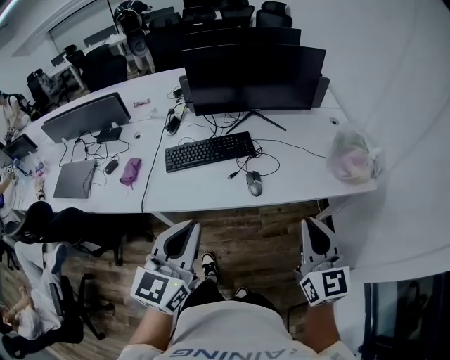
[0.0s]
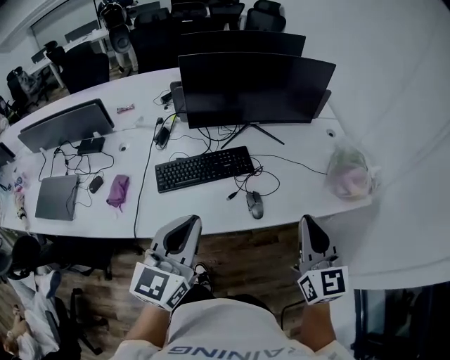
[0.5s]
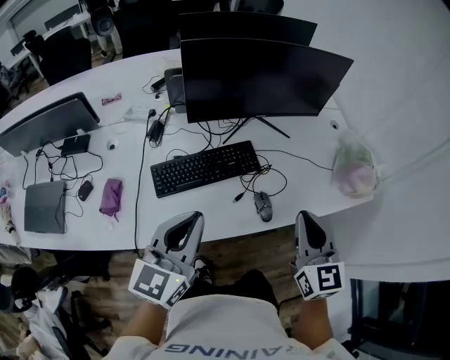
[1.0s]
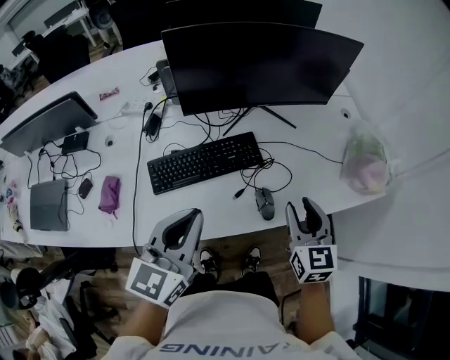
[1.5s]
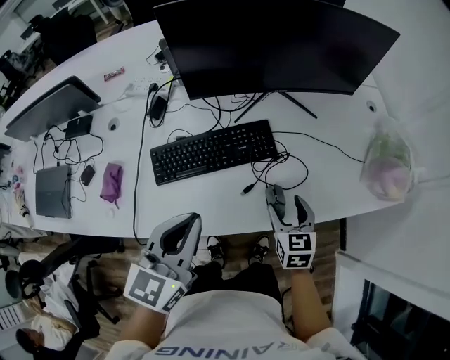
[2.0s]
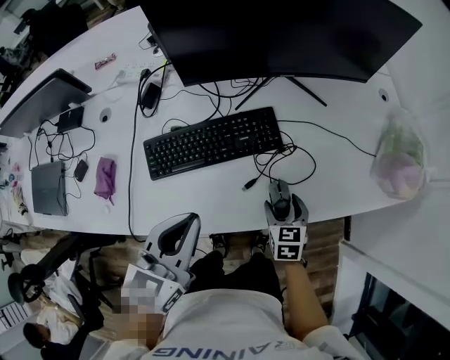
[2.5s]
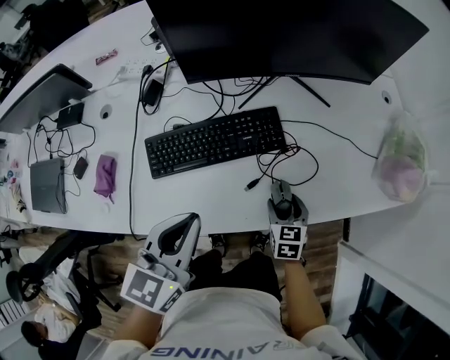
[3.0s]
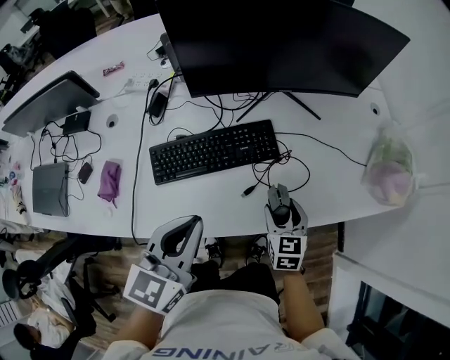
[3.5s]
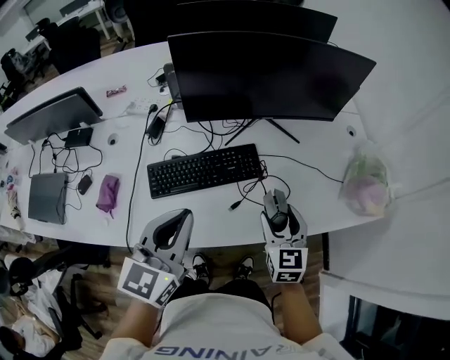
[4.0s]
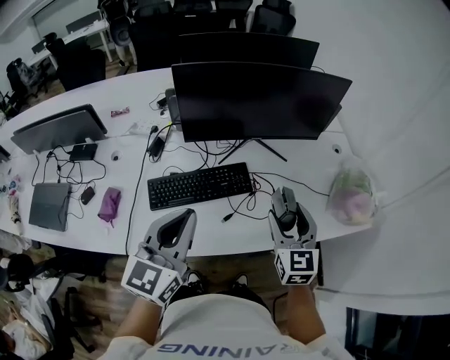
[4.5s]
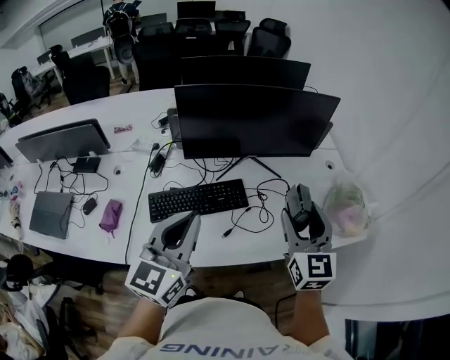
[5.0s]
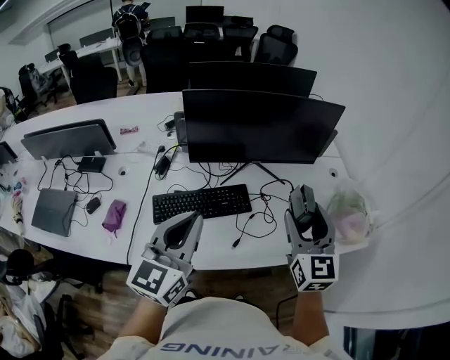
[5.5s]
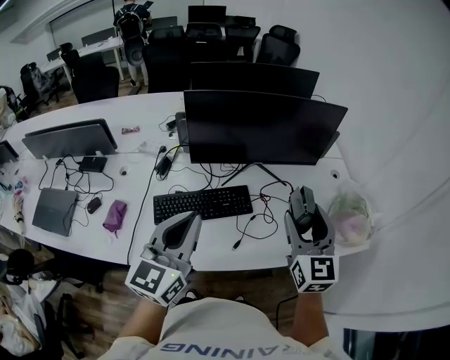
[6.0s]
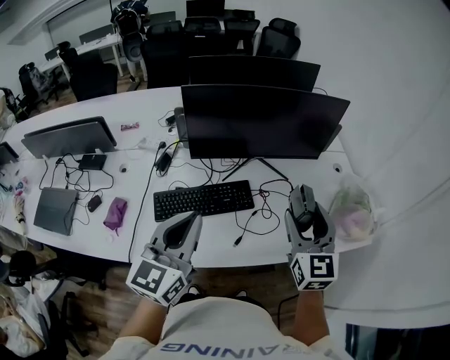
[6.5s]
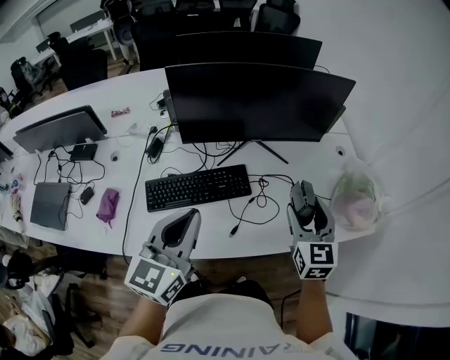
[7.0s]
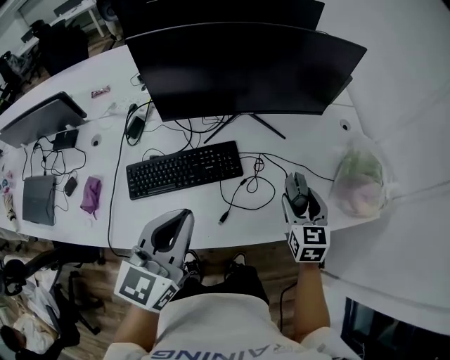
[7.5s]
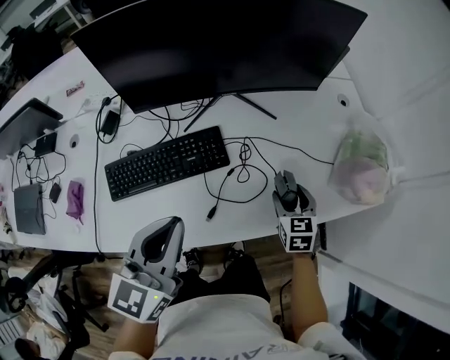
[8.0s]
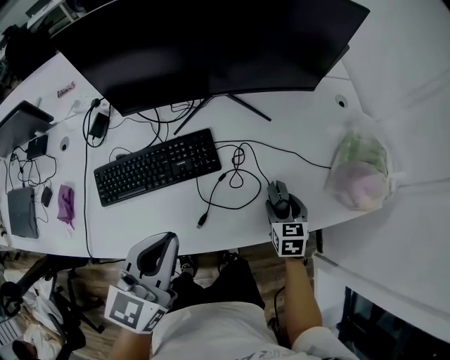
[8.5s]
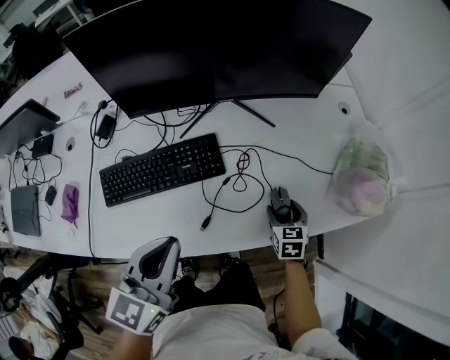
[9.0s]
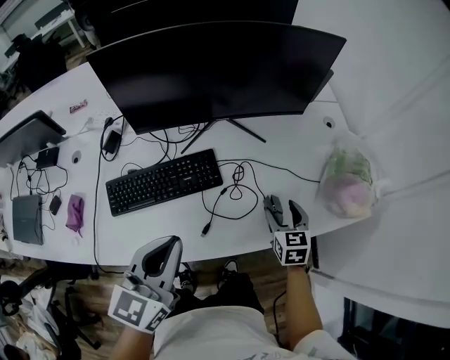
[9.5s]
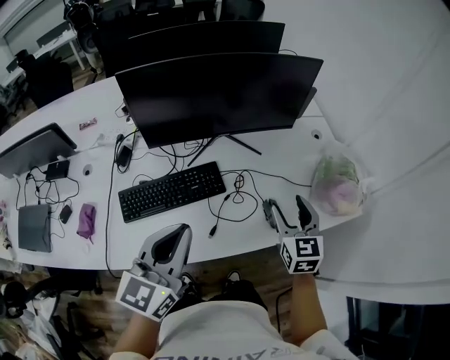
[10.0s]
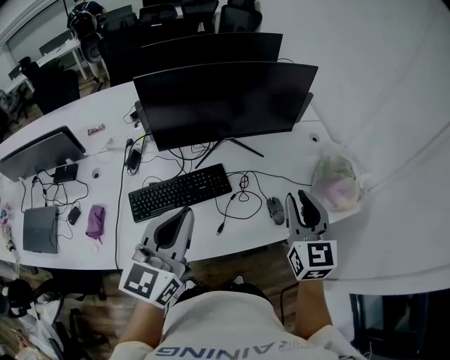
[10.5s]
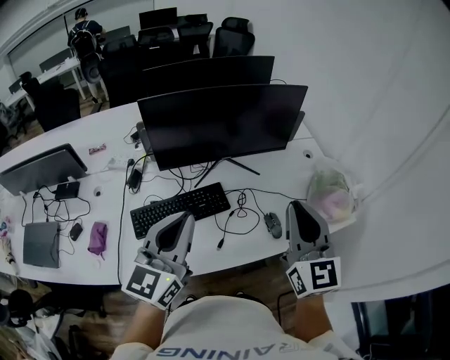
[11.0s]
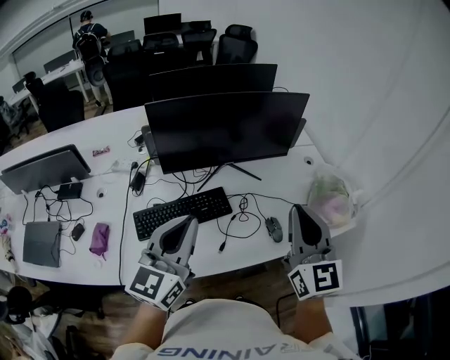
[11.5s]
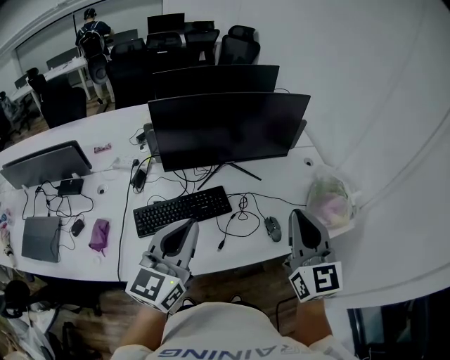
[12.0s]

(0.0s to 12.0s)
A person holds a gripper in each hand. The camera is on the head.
0.0s - 2.0s: The left gripper shifts roughly 25 cm forward and downward. The right gripper is displaced downward, forward and to the left by about 35 cm, tilts its fingers about 30 degrees downward, and opens.
2.0s - 4.0s: The right gripper travels upward by roughly 10 cm.
4.0s - 6.0s: The left gripper moves upward, approximately 10 cm. The right gripper goes roughly 20 cm upward, and turns by approximately 20 degrees.
6.0s - 8.0s: The right gripper is displaced downward by approximately 30 cm, and angles its fingers downward, by roughly 40 degrees; the left gripper travels downward, to the right and forward by some 15 cm.
8.0s - 10.0s: The left gripper shifts about 5 cm upward, while the right gripper goes roughly 20 cm upward, and rotates roughly 20 degrees.
10.0s - 12.0s: The right gripper is displaced upward and backward by some 20 cm, changes its angle by about 20 degrees, and closes. Meanwhile the left gripper is displaced upward by some 5 cm.

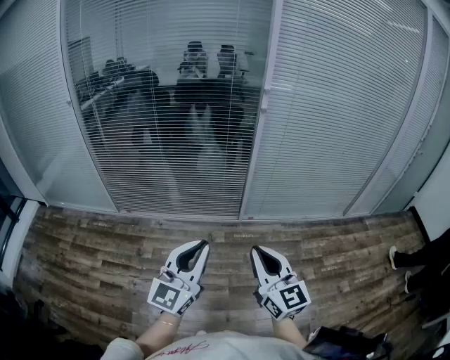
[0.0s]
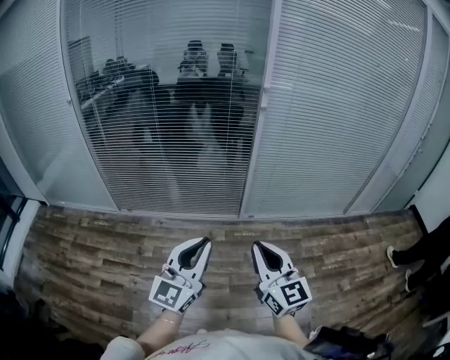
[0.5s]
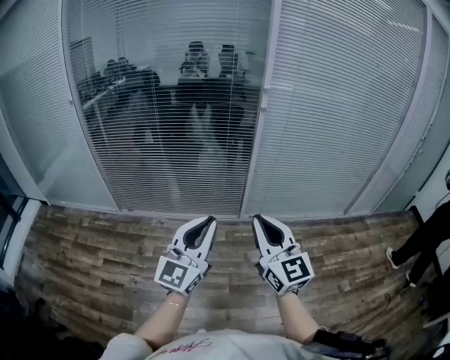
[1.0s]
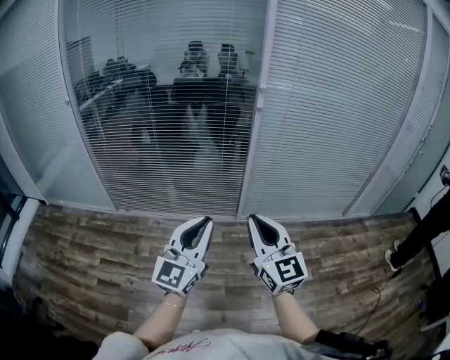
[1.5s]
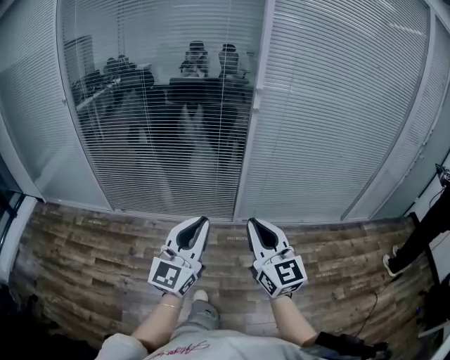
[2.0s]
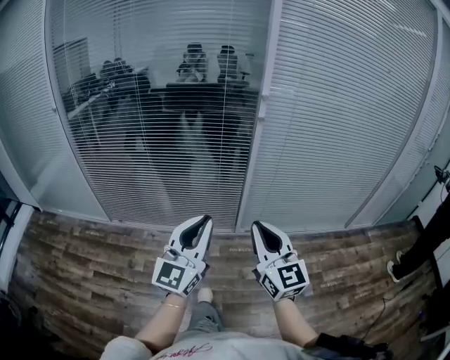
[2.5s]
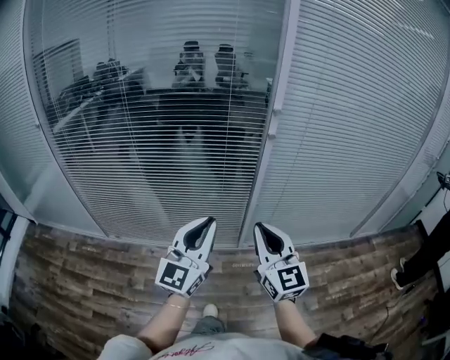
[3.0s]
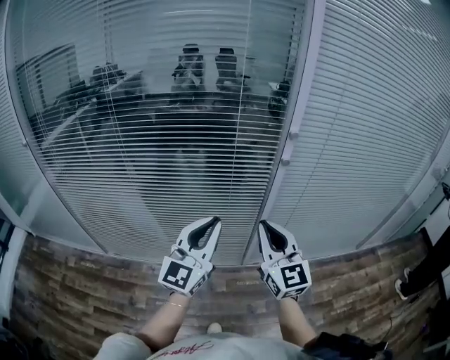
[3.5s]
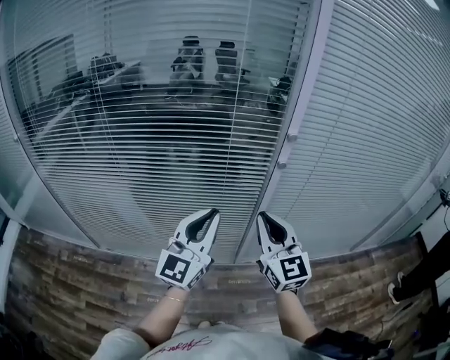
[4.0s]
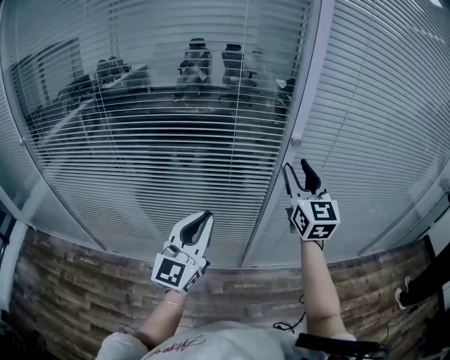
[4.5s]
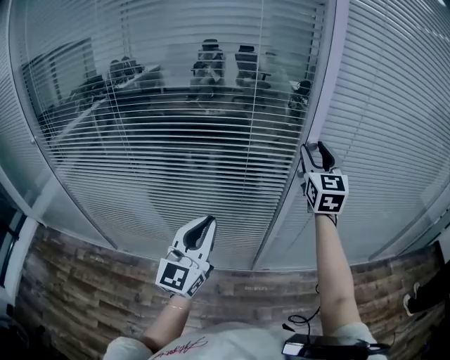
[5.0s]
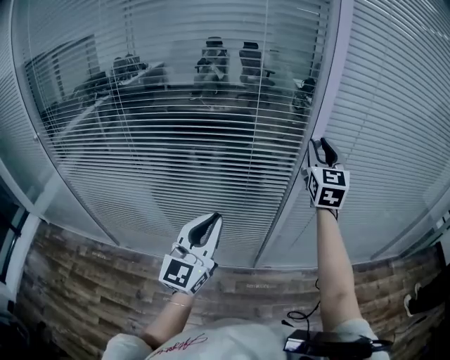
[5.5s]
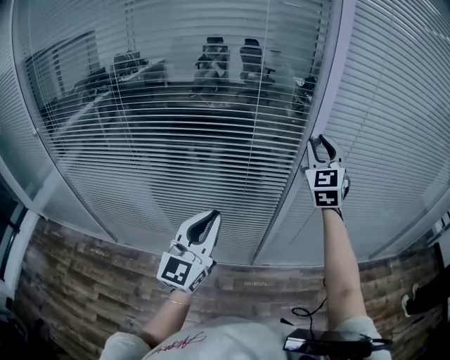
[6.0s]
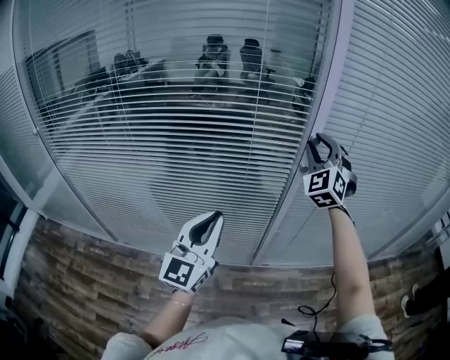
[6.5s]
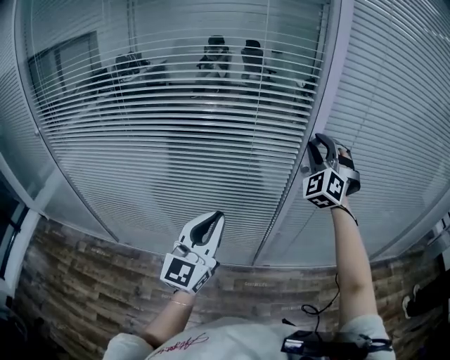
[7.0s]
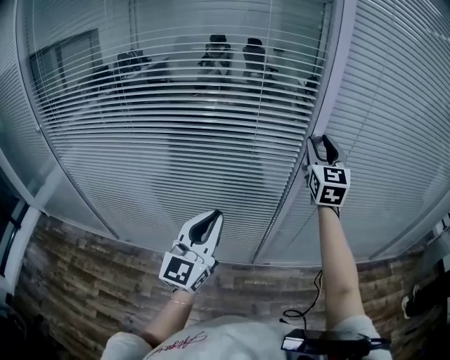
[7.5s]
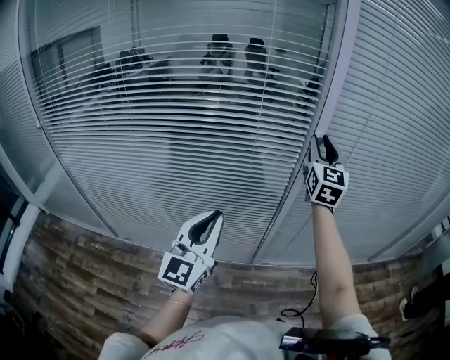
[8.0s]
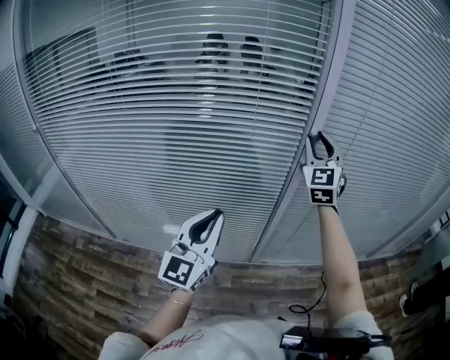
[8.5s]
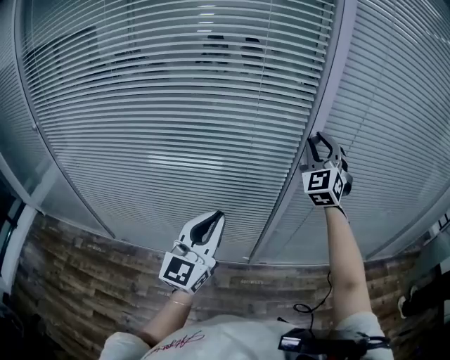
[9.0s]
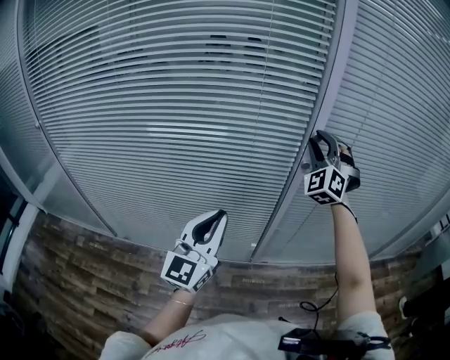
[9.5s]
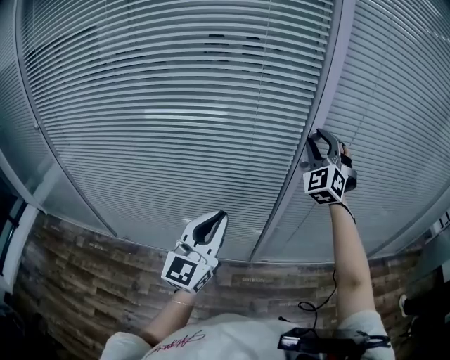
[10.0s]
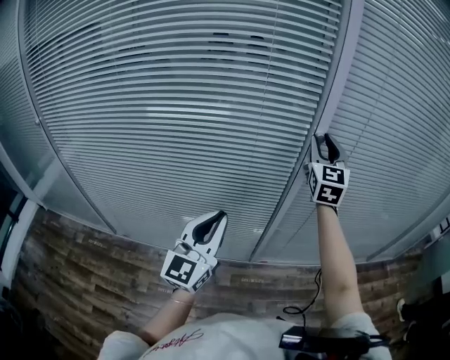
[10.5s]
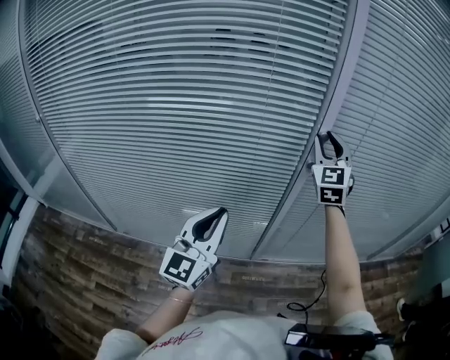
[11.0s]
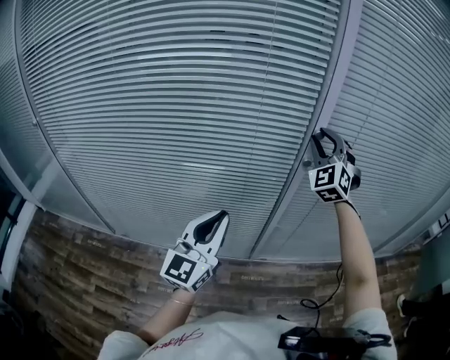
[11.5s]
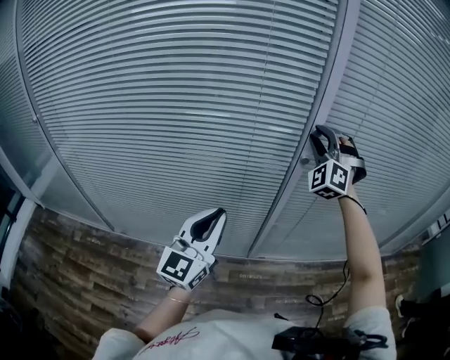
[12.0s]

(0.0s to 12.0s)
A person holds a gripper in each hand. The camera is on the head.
0.0s - 2.0s: The left gripper travels forward and to the right by roughly 10 cm. The right gripper goes roughly 10 cm forward.
2.0s - 4.0s: The grippers both shift forward by approximately 40 cm.
4.0s - 6.0s: The right gripper travels forward and upward by roughly 25 cm, changes its angle by approximately 30 degrees, and opens.
6.0s - 8.0s: The right gripper changes its angle by roughly 30 degrees.
8.0s - 10.0s: The right gripper rotates around the line of its fingers by about 50 degrees, counterclockwise from behind.

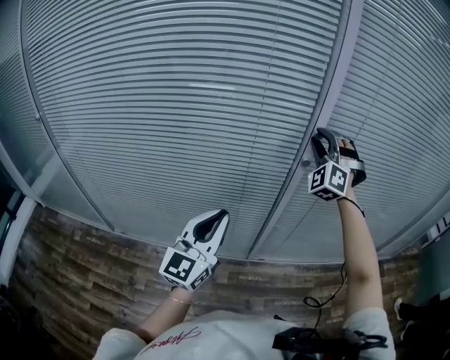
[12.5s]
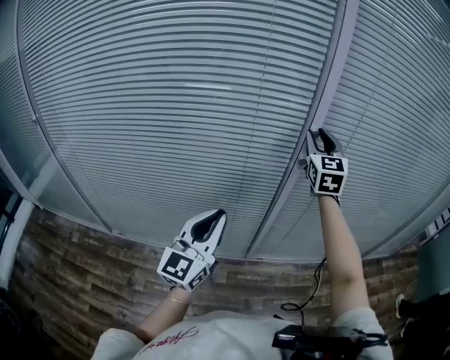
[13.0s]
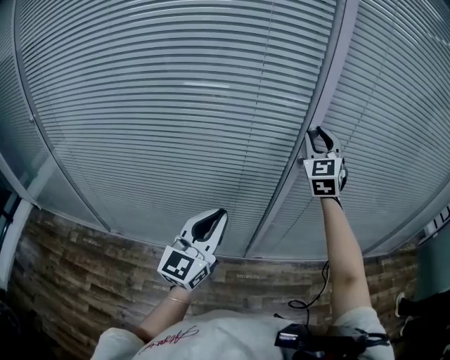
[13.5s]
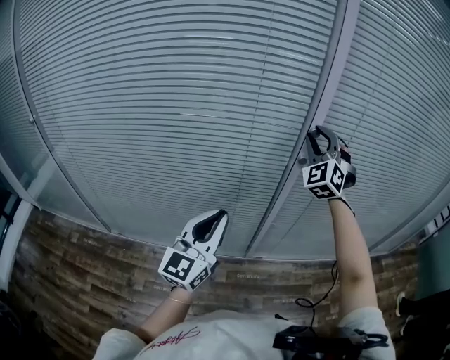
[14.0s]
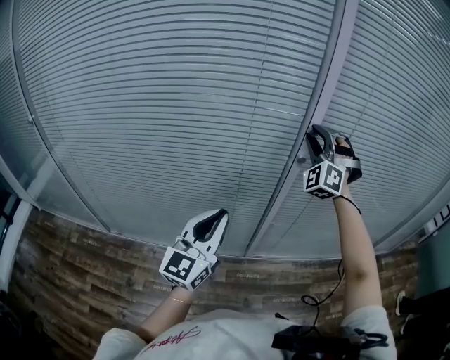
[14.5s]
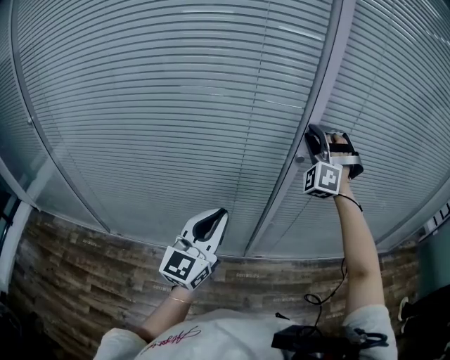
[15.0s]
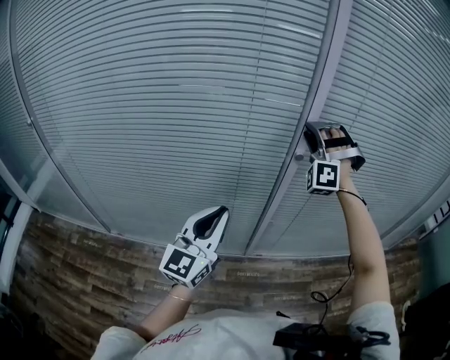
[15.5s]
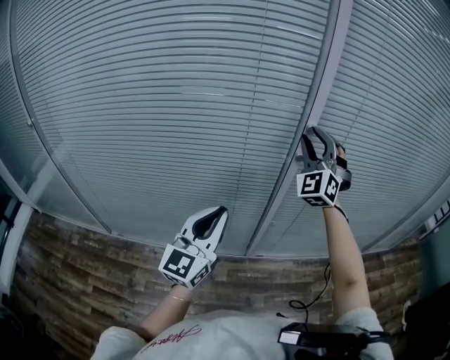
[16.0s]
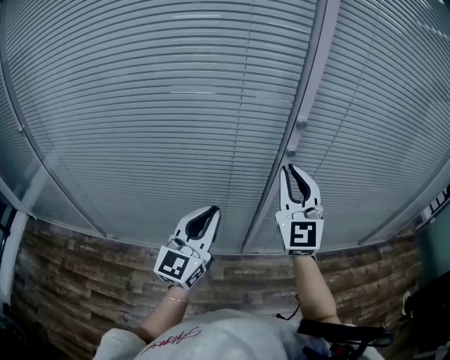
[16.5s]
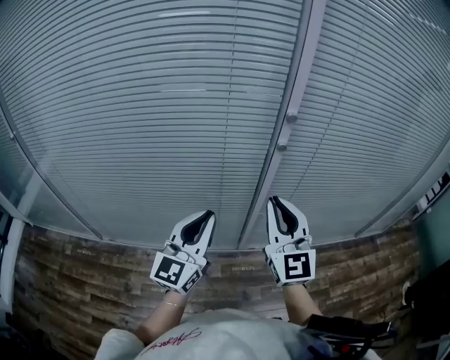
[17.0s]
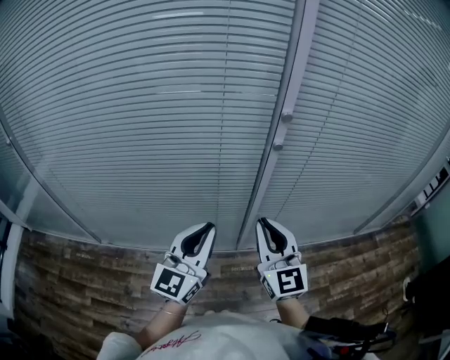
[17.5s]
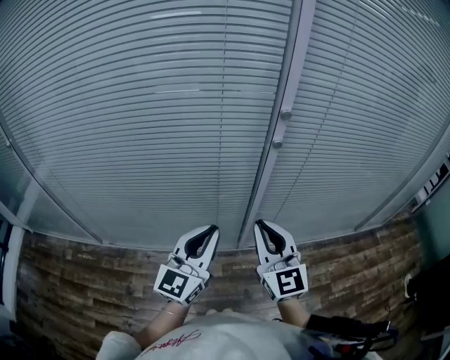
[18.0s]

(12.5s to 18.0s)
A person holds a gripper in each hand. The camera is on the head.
14.5s - 16.0s: The right gripper swivels approximately 20 degrees.
16.0s - 18.0s: The right gripper goes roughly 25 cm backward and downward, rolls clockwise, seen from behind, by roughly 50 degrees, and closes up; the left gripper moves about 5 cm.
